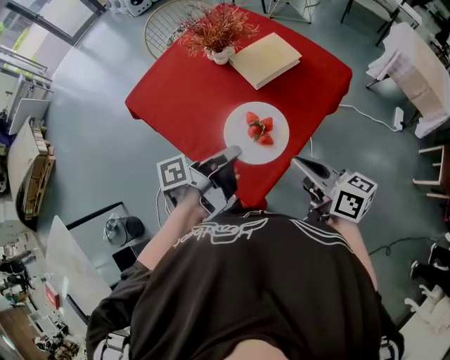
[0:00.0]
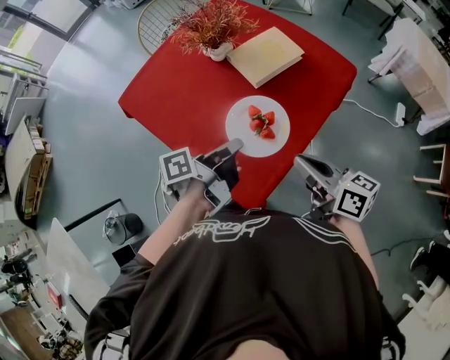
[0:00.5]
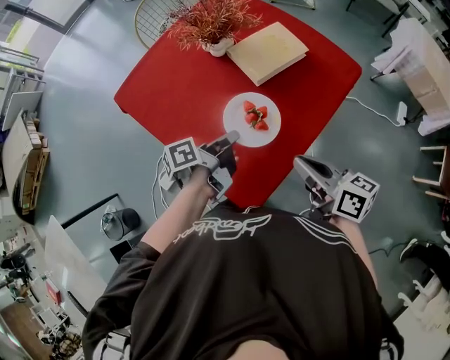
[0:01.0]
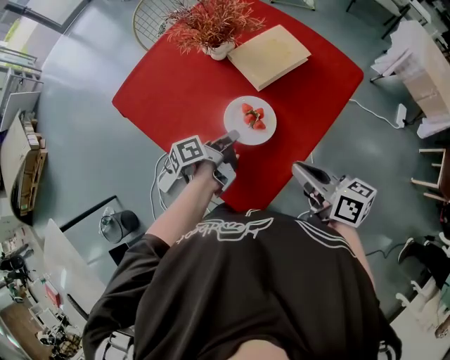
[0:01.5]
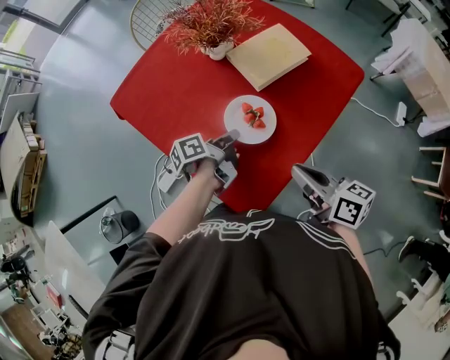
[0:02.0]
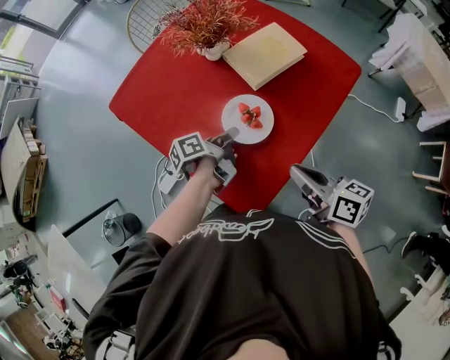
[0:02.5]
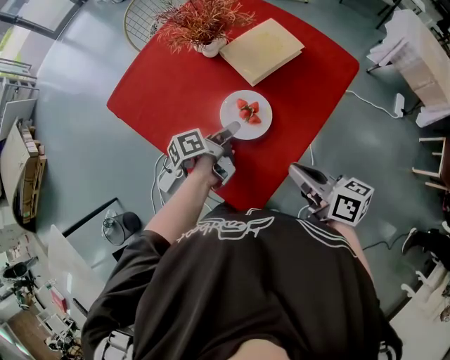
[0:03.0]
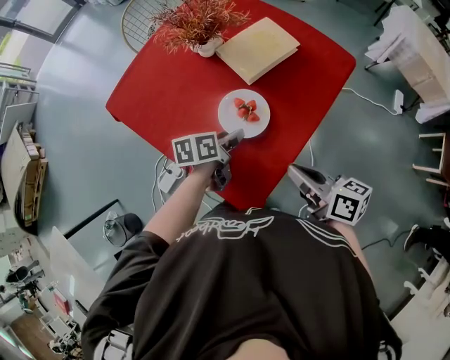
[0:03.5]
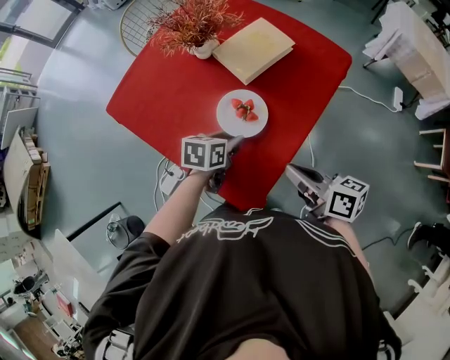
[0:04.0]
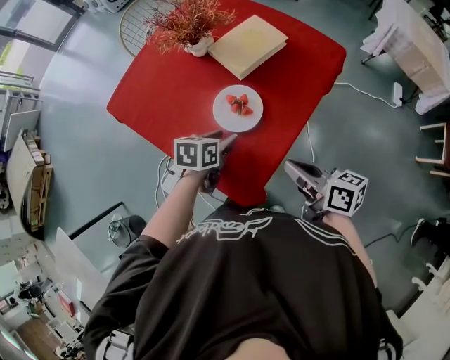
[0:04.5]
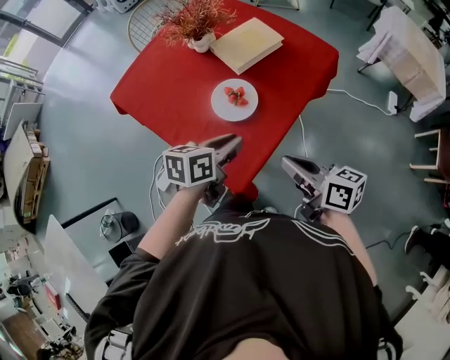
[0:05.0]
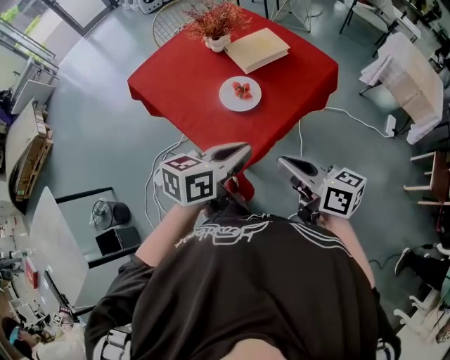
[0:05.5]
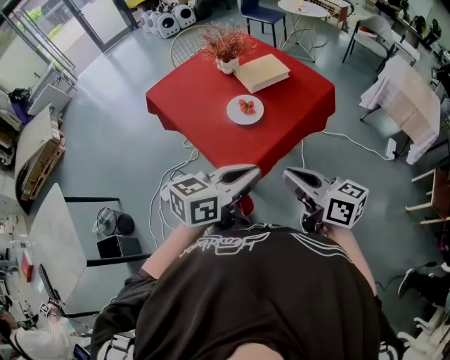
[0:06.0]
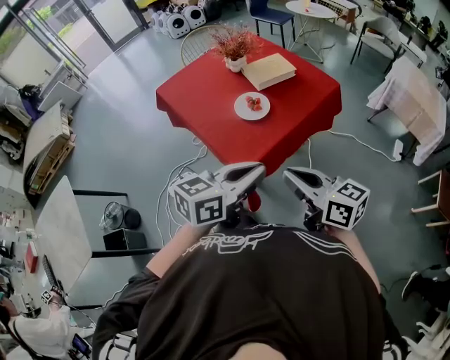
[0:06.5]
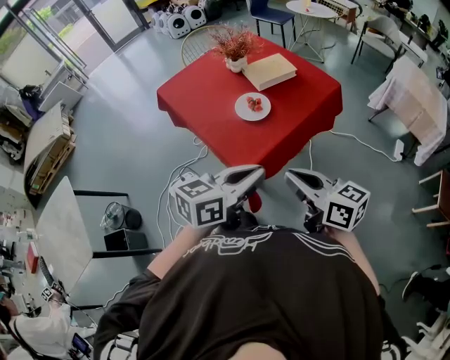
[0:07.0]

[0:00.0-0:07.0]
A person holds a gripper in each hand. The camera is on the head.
0:00.0 to 0:02.0: The right gripper goes some 5 cm downward.
0:03.5 to 0:05.0: The right gripper moves some 5 cm.
0:05.0 to 0:07.0: The right gripper changes place by approximately 15 cm, and changes its angle by some 20 degrees.

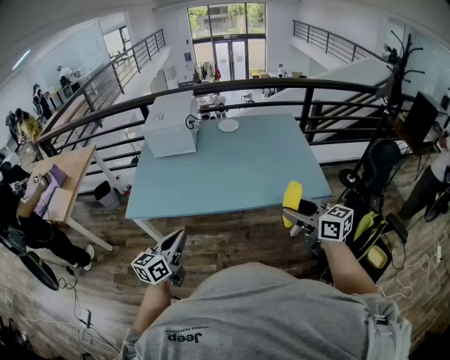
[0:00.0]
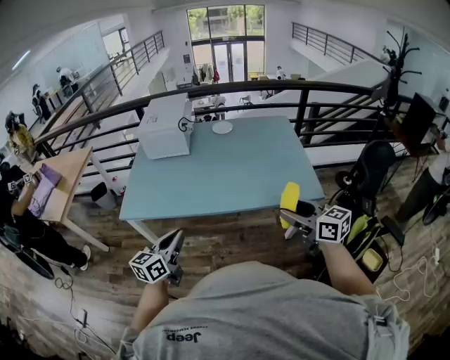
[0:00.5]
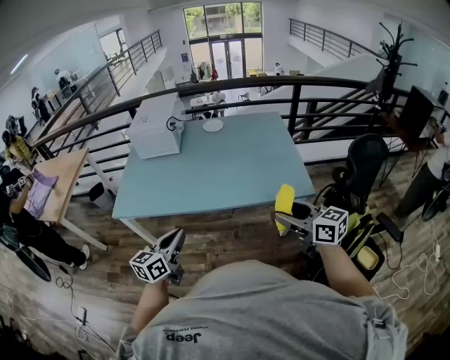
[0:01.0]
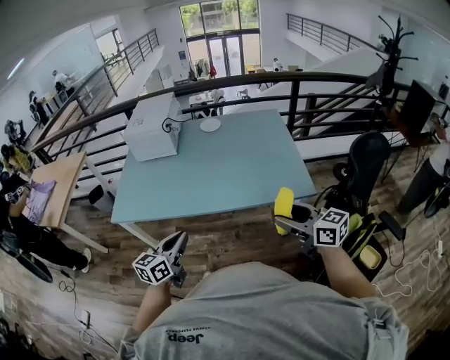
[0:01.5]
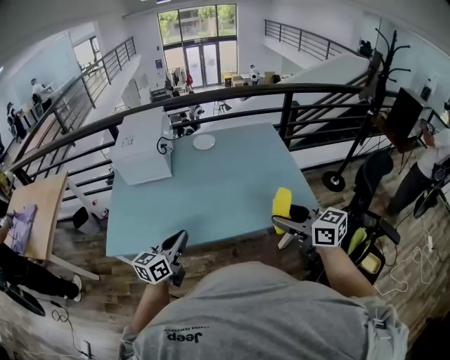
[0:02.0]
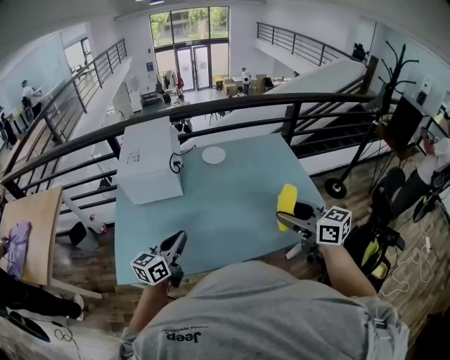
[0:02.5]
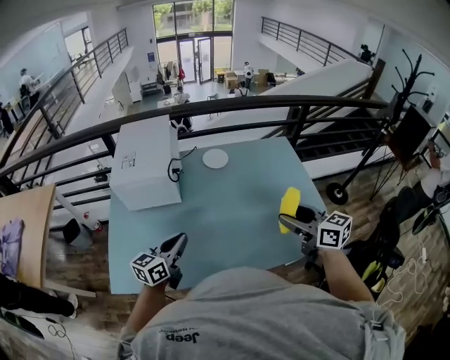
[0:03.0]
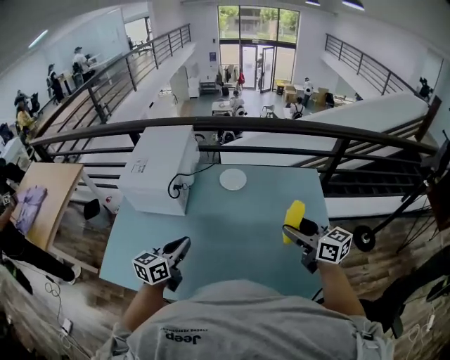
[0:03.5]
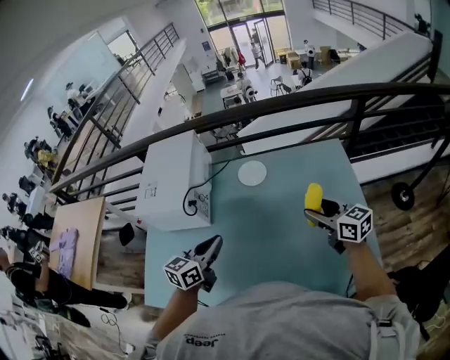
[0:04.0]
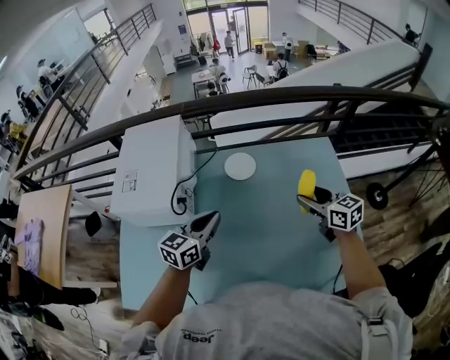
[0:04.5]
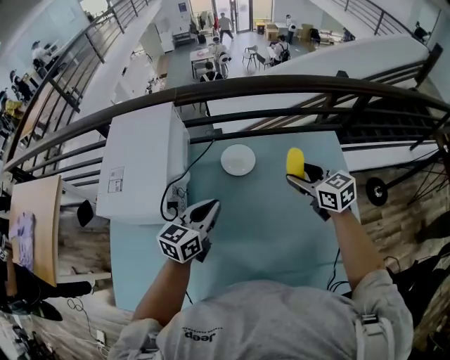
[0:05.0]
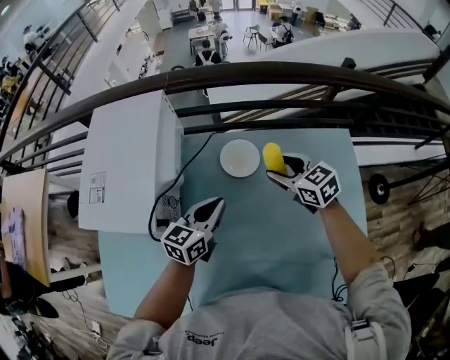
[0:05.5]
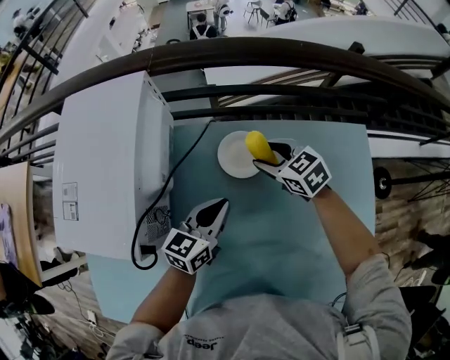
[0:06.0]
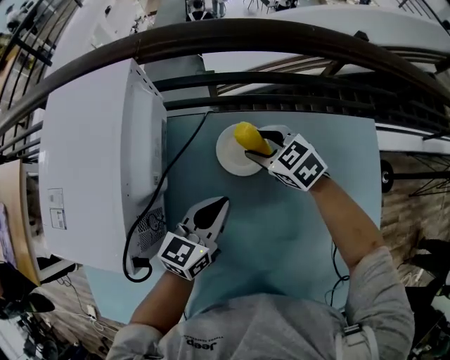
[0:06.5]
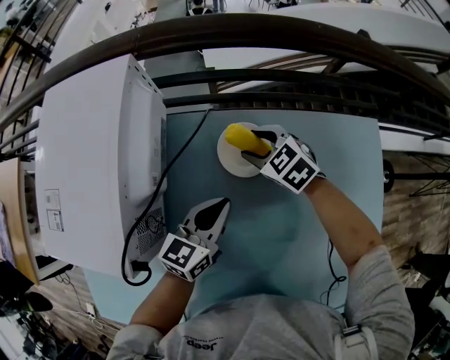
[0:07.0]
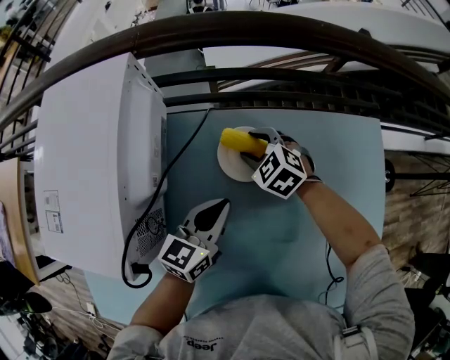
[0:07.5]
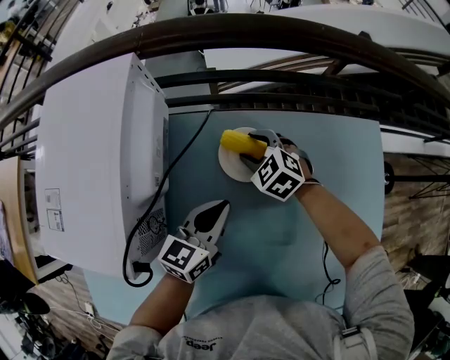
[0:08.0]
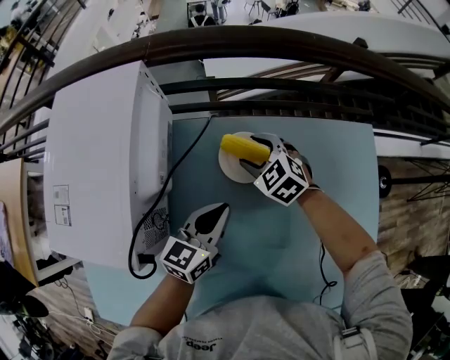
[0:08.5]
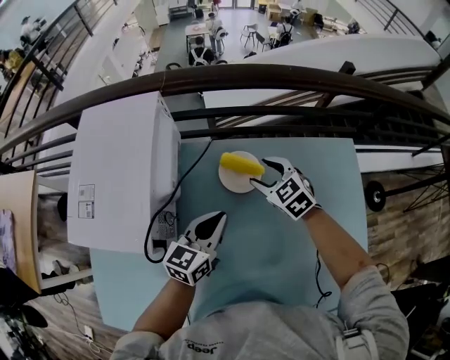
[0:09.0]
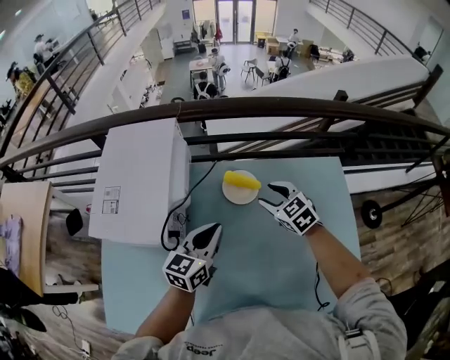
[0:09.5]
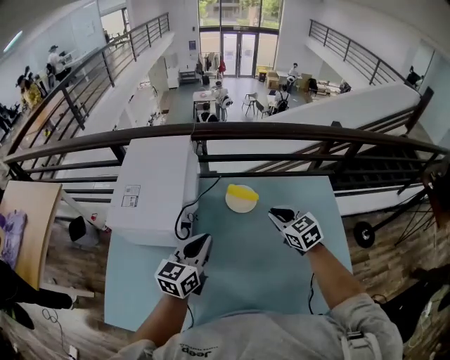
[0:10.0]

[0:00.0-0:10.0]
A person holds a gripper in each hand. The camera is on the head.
0:00.0 to 0:02.0: The right gripper is displaced forward by approximately 10 cm. The left gripper travels forward and to the right by about 15 cm.
0:02.0 to 0:04.0: The two grippers go some 40 cm forward.
0:04.0 to 0:06.0: The left gripper goes approximately 30 cm forward and downward; the right gripper goes about 40 cm forward, downward and to the left, and rotates some 40 degrees.
0:06.0 to 0:08.0: The right gripper goes roughly 10 cm downward and to the left, and rotates roughly 20 degrees.
0:08.0 to 0:10.0: Both grippers move upward and backward, roughly 30 cm. The right gripper rotates approximately 30 degrees, and closes up.

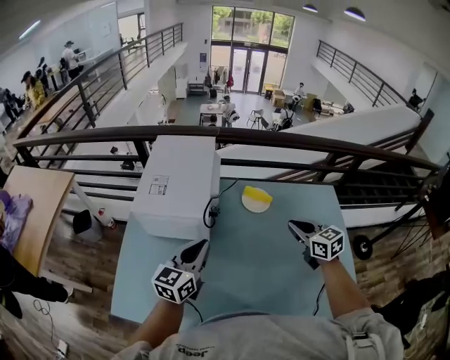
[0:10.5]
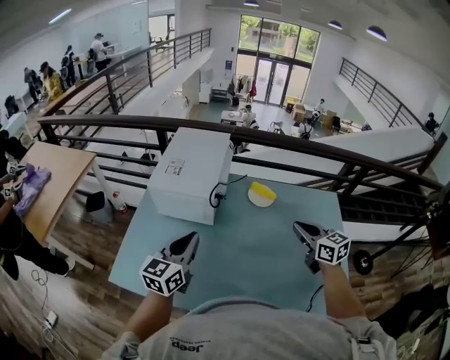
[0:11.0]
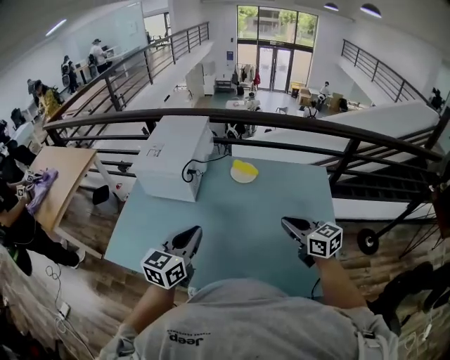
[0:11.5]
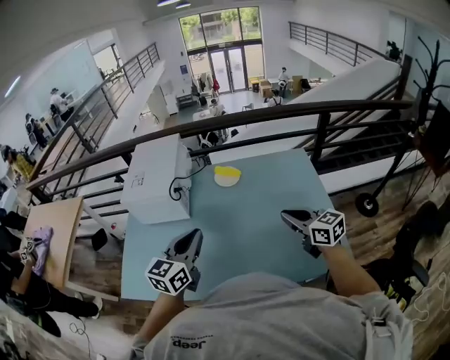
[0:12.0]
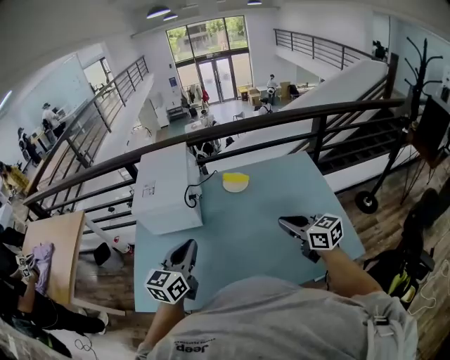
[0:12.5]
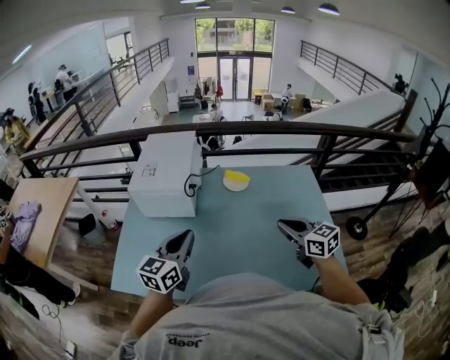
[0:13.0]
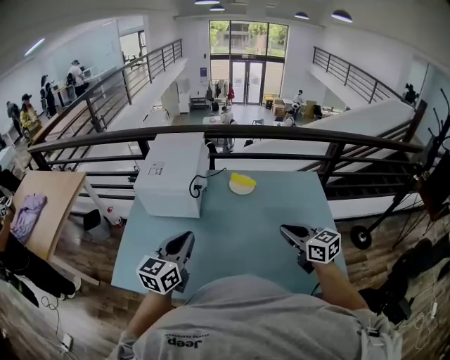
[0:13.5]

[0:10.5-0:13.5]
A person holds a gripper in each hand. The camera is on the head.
0:10.5 to 0:12.0: Both grippers travel together backward and to the right, some 20 cm.
0:12.0 to 0:13.5: The grippers both shift to the left by approximately 10 cm.

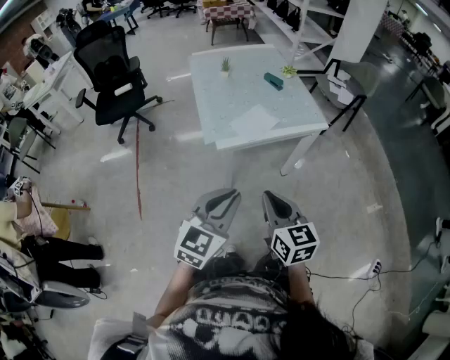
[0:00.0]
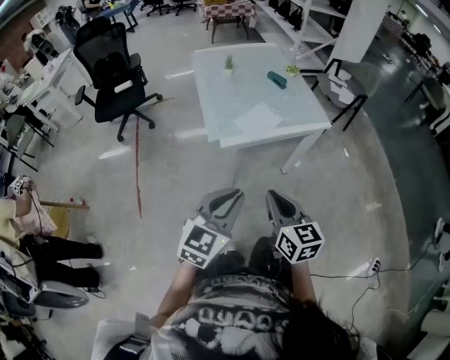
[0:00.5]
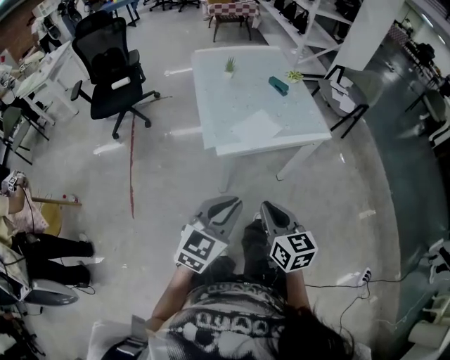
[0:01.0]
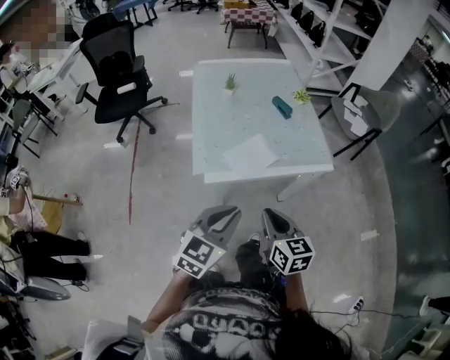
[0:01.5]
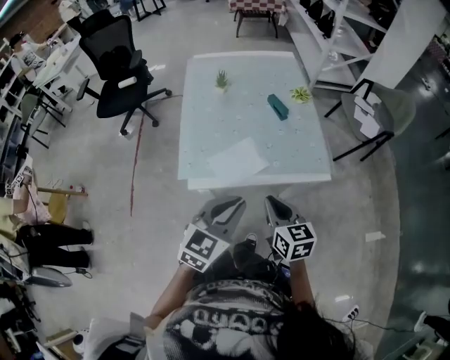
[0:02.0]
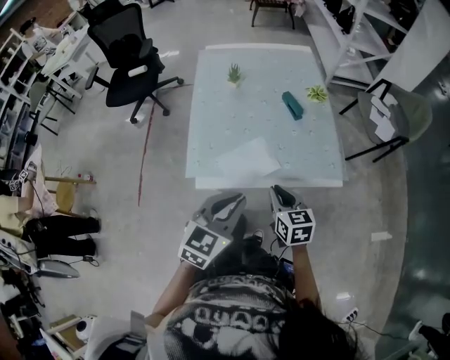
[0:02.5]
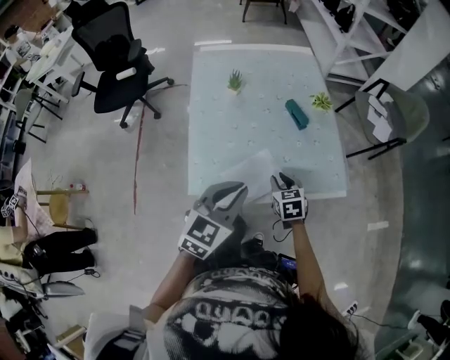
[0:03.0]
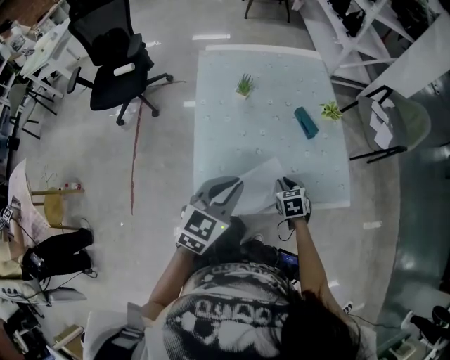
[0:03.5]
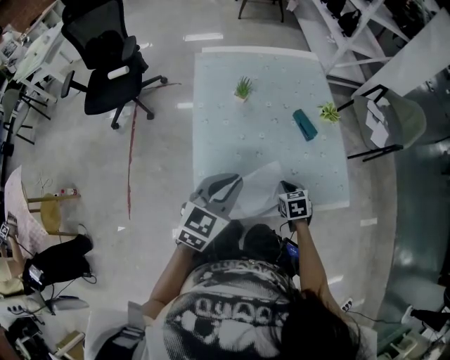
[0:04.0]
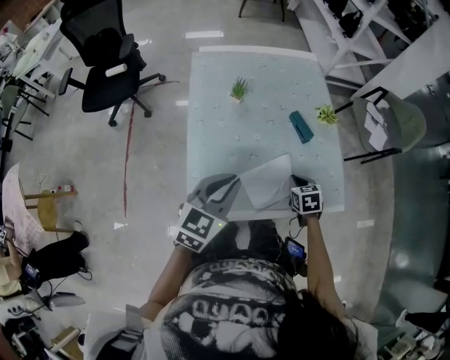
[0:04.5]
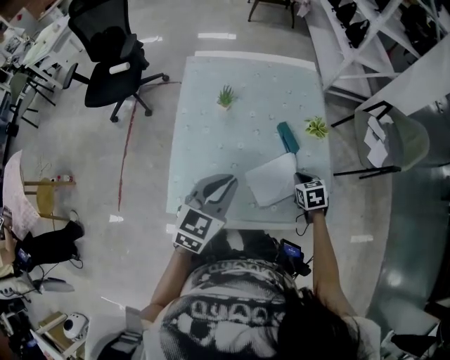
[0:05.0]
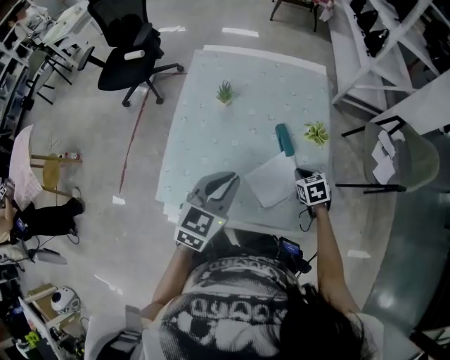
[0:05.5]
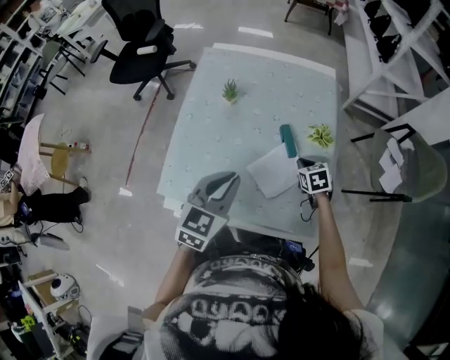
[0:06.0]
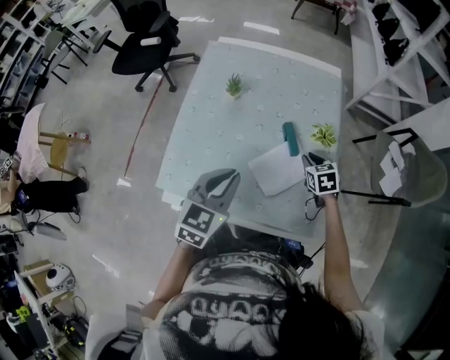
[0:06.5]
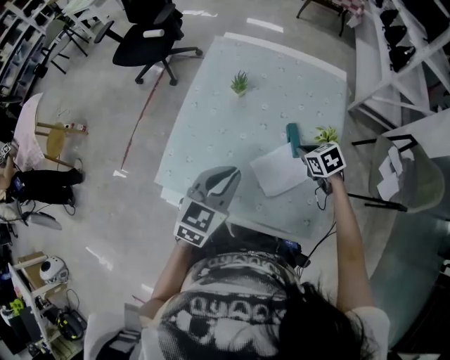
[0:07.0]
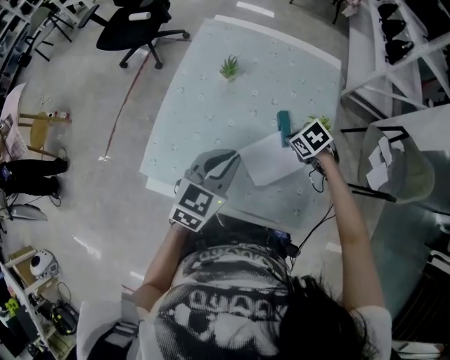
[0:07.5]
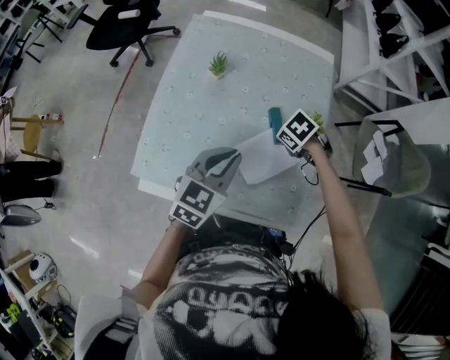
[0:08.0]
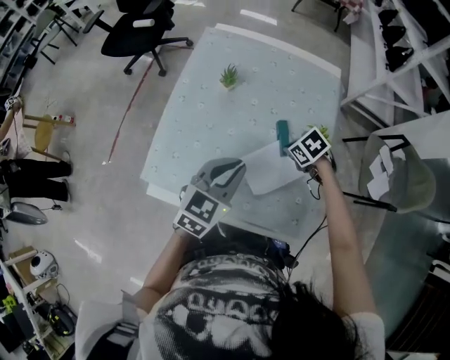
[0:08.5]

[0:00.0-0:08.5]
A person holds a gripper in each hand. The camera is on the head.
0:00.0 to 0:02.0: The two grippers go some 30 cm forward and to the right.
0:02.0 to 0:04.0: The left gripper travels forward and to the left by approximately 25 cm; the right gripper travels forward and downward by some 25 cm, and tips its fingers downward by approximately 30 degrees.
0:04.0 to 0:06.5: The right gripper travels forward and to the right by approximately 25 cm, and changes its angle by roughly 20 degrees. The left gripper shifts some 15 cm to the right, and turns by roughly 20 degrees.
0:06.5 to 0:08.5: The right gripper shifts by some 5 cm, and changes its angle by roughly 40 degrees.
